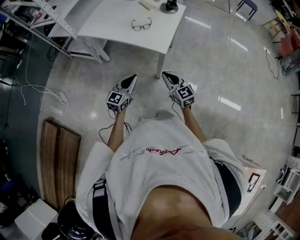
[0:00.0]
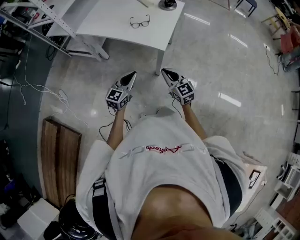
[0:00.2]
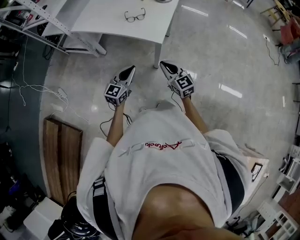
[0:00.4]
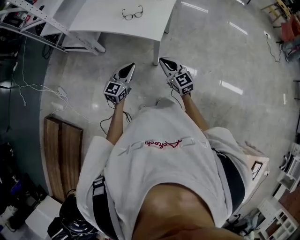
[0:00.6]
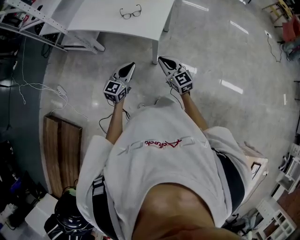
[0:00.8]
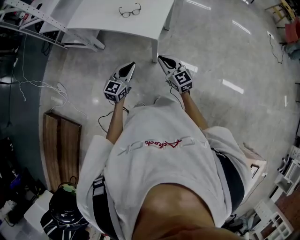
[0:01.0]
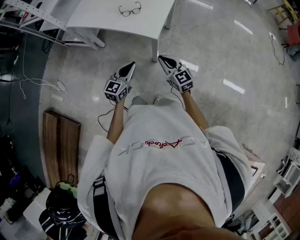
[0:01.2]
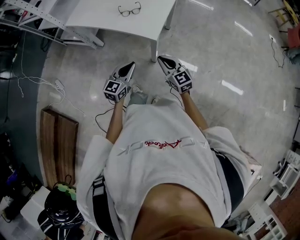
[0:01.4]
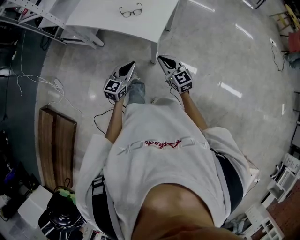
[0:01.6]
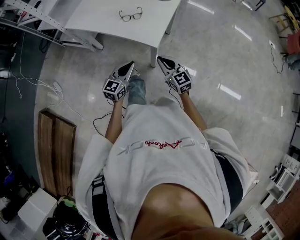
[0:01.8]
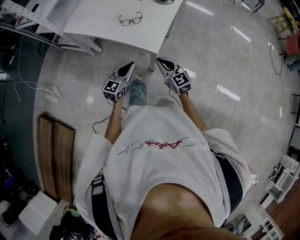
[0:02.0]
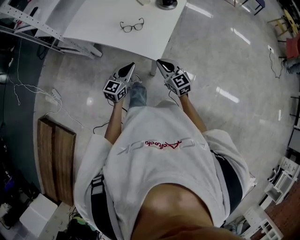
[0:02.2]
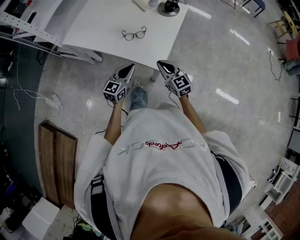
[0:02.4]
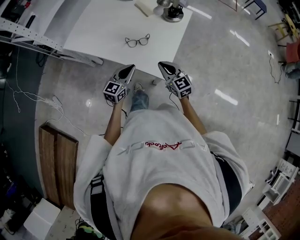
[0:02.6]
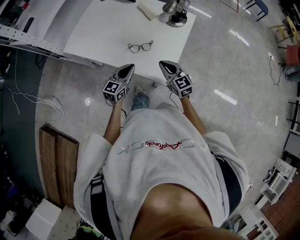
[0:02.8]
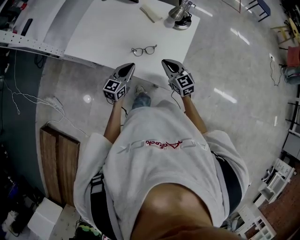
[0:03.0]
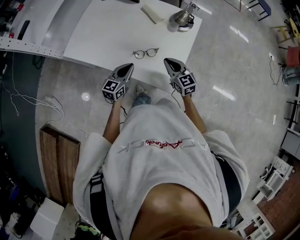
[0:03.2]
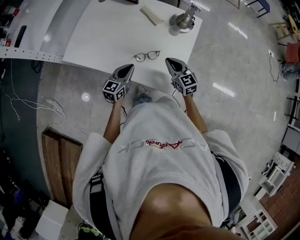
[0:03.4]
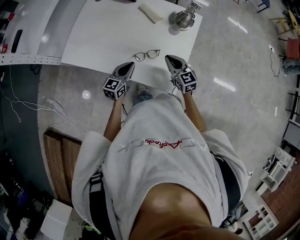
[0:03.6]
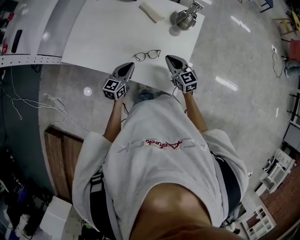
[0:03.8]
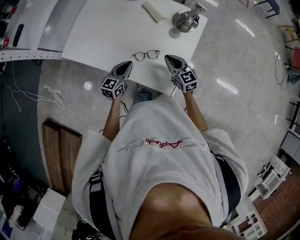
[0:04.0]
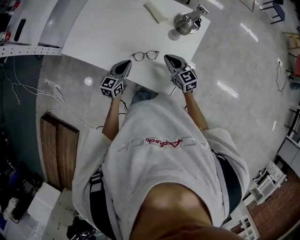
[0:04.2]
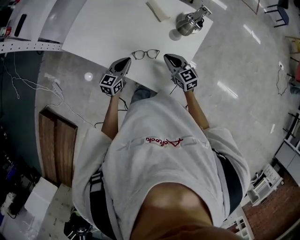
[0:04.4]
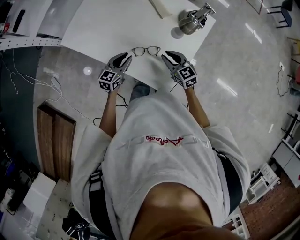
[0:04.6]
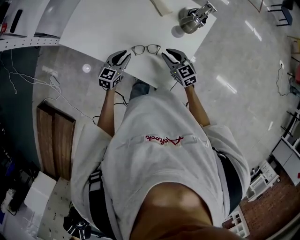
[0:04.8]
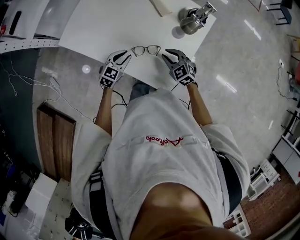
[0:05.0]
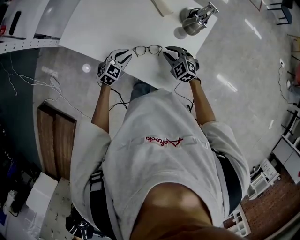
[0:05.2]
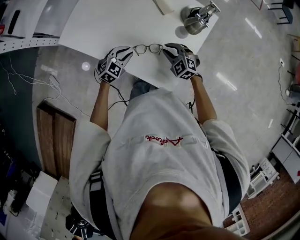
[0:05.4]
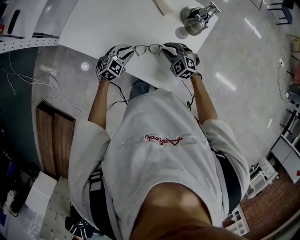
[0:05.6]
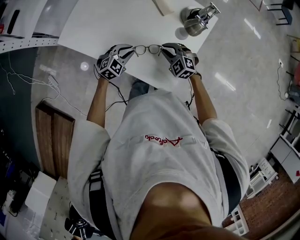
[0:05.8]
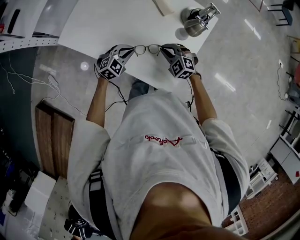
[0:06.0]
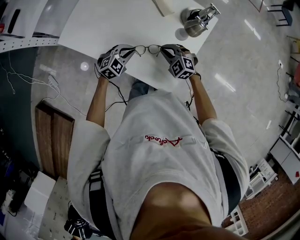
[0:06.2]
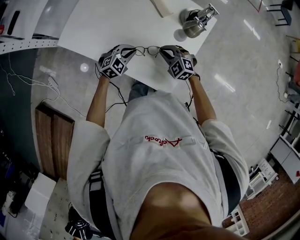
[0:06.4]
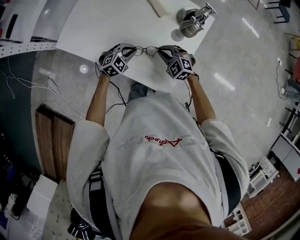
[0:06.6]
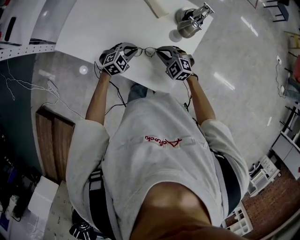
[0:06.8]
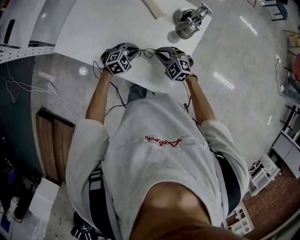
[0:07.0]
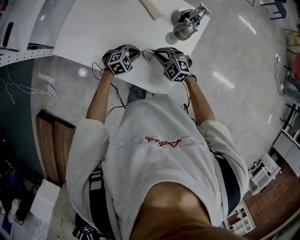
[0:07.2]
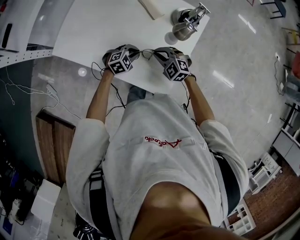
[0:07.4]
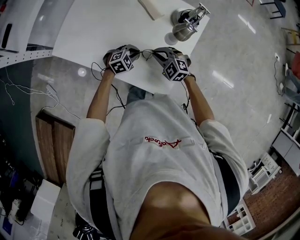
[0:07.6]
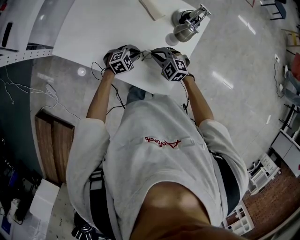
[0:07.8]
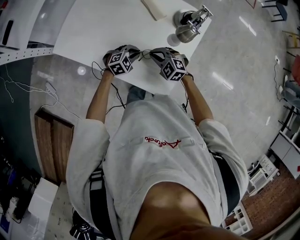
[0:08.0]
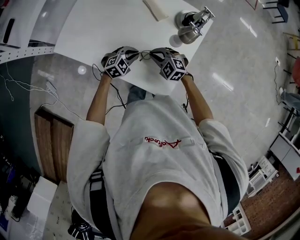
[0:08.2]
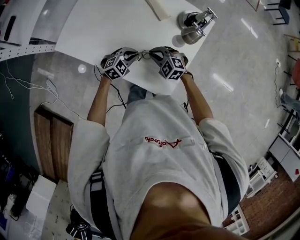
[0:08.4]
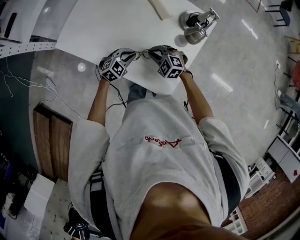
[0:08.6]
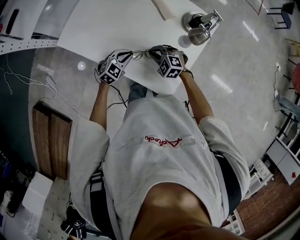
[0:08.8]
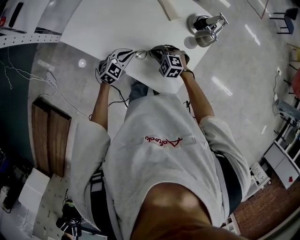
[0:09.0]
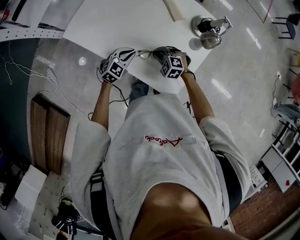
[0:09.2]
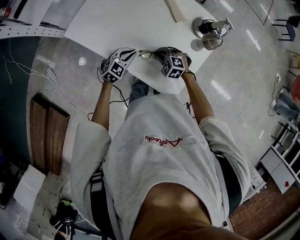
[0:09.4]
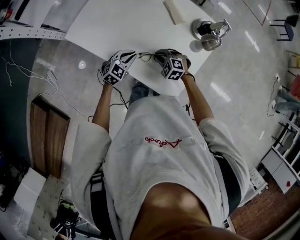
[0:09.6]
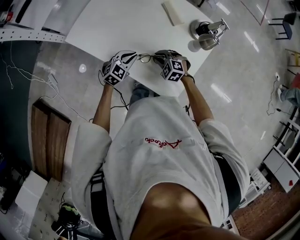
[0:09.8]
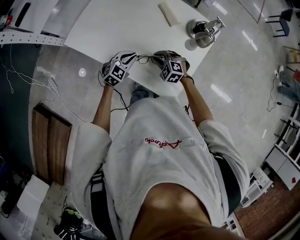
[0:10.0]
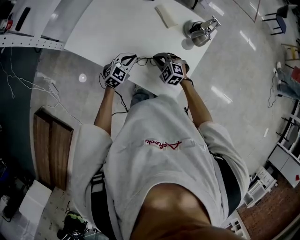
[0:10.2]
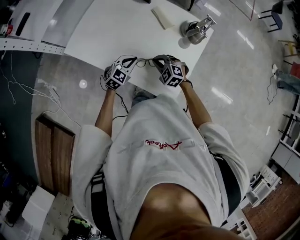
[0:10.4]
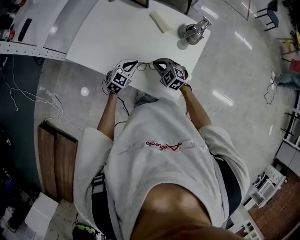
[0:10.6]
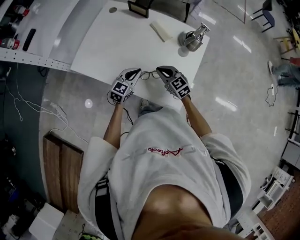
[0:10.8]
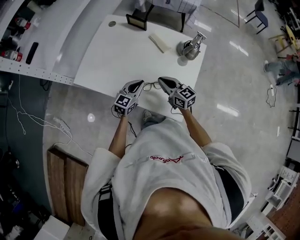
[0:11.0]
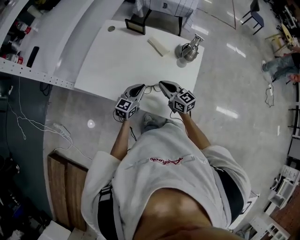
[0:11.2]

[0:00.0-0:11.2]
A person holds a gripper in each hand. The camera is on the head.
0:00.0 to 0:01.6: The right gripper heads forward, covering about 5 cm. Meanwhile the left gripper moves to the right, roughly 5 cm.
0:01.6 to 0:03.2: Both grippers travel together forward, roughly 30 cm.
0:03.2 to 0:04.8: The left gripper moves approximately 5 cm. Meanwhile the right gripper is displaced downward by roughly 5 cm, and opens its fingers.
0:04.8 to 0:06.4: The left gripper changes its angle by roughly 40 degrees; the right gripper swivels about 40 degrees.
0:06.4 to 0:08.0: The left gripper moves approximately 5 cm.
0:08.0 to 0:09.6: The right gripper shifts roughly 5 cm to the left and downward. The left gripper shifts some 10 cm to the left, and swivels some 30 degrees.
0:09.6 to 0:11.2: The left gripper is displaced upward by some 10 cm, and swivels approximately 30 degrees. Meanwhile the right gripper goes approximately 15 cm upward, and angles its fingers upward, by about 40 degrees.

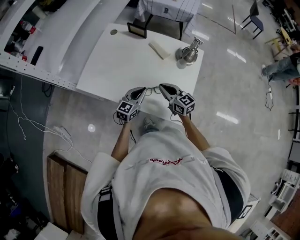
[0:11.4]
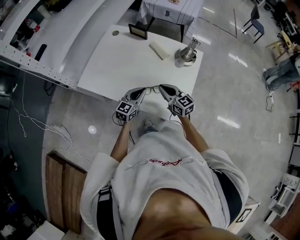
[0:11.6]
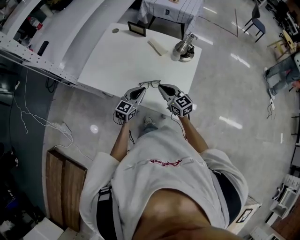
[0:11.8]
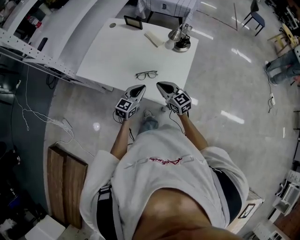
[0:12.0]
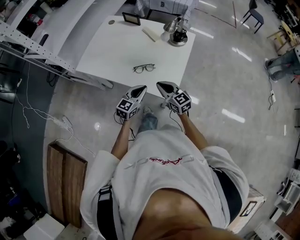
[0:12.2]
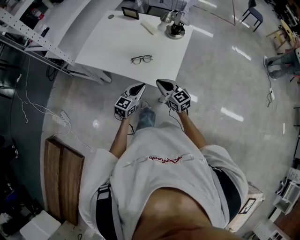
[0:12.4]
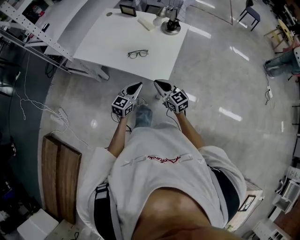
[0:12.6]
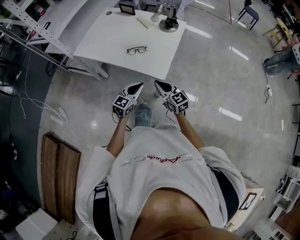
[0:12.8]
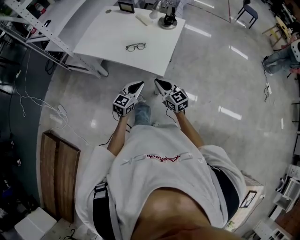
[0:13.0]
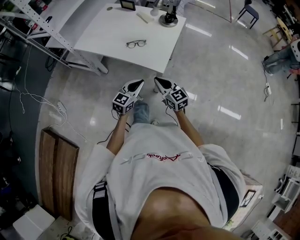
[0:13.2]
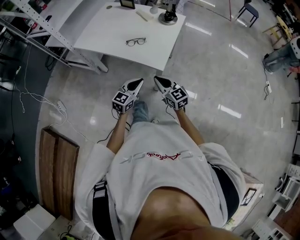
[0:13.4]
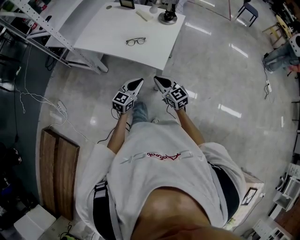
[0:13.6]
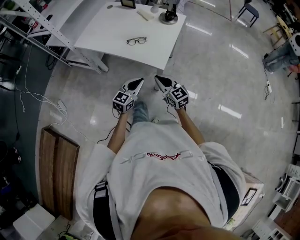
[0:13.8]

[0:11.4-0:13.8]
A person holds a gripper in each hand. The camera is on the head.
0:11.4 to 0:12.6: Both grippers move backward, about 25 cm.
0:12.6 to 0:13.8: The grippers both shift backward by about 10 cm.

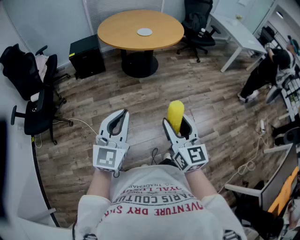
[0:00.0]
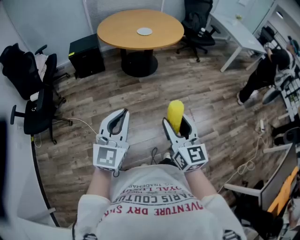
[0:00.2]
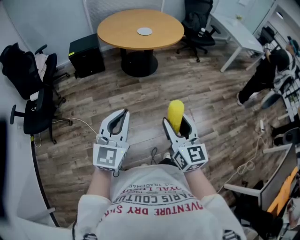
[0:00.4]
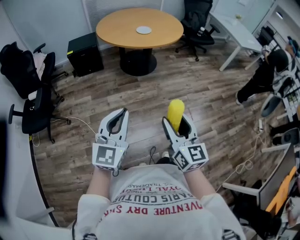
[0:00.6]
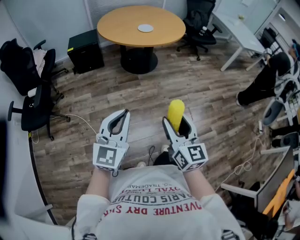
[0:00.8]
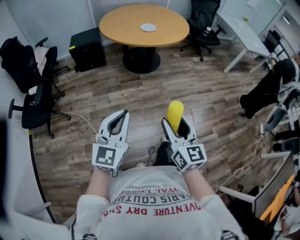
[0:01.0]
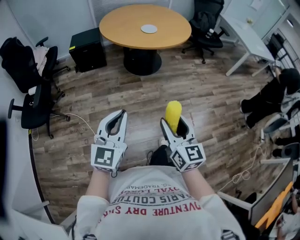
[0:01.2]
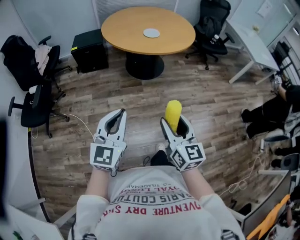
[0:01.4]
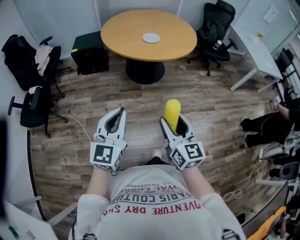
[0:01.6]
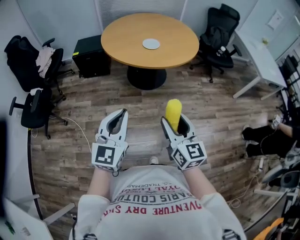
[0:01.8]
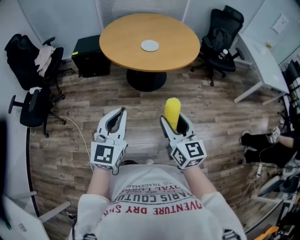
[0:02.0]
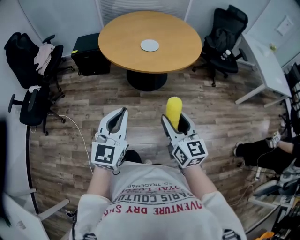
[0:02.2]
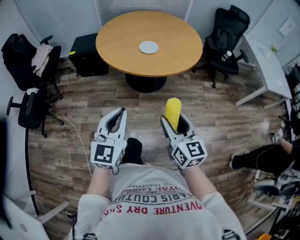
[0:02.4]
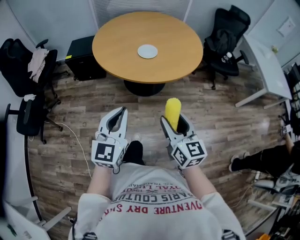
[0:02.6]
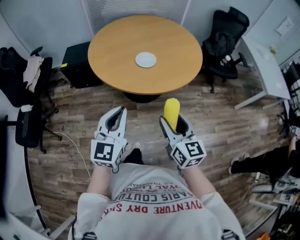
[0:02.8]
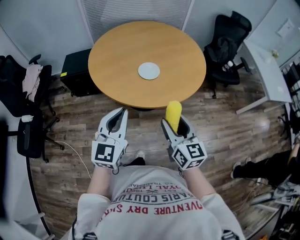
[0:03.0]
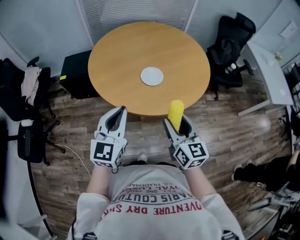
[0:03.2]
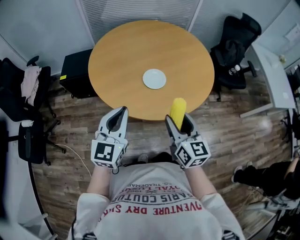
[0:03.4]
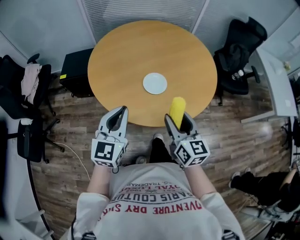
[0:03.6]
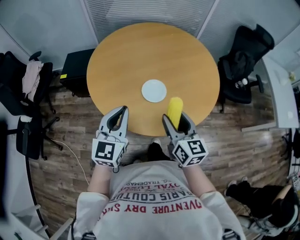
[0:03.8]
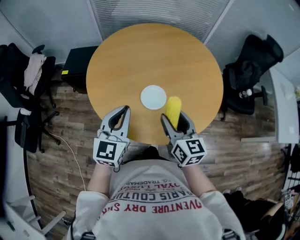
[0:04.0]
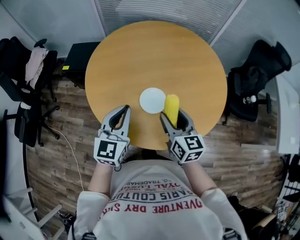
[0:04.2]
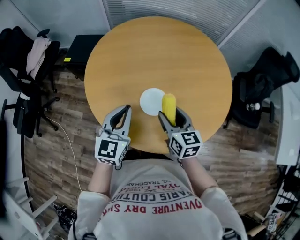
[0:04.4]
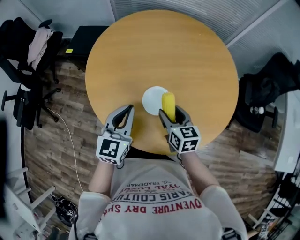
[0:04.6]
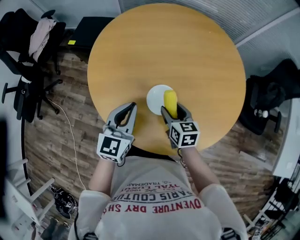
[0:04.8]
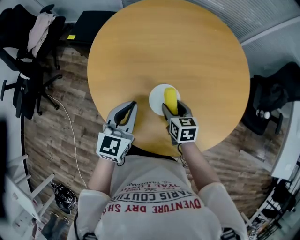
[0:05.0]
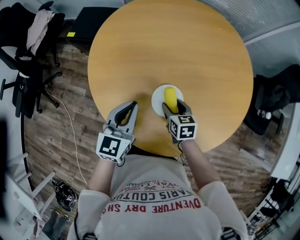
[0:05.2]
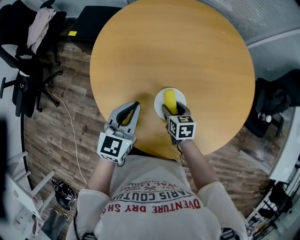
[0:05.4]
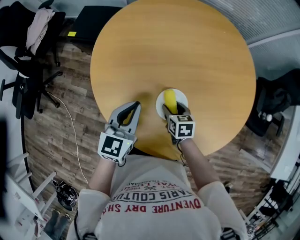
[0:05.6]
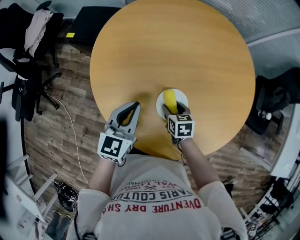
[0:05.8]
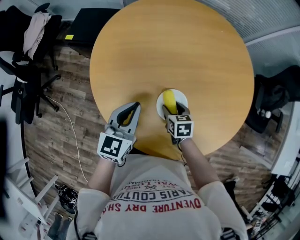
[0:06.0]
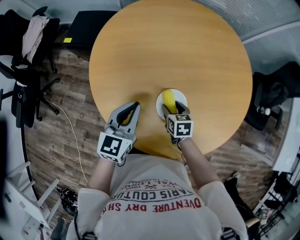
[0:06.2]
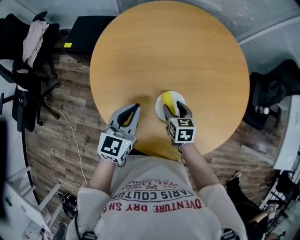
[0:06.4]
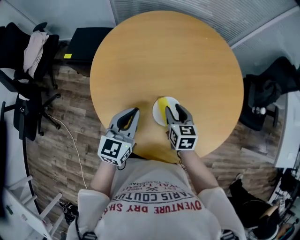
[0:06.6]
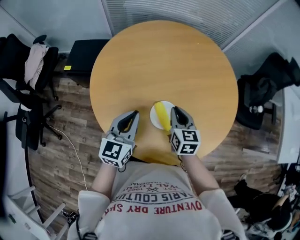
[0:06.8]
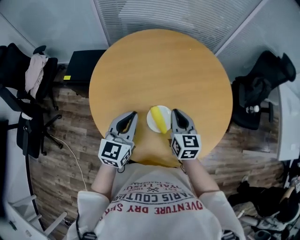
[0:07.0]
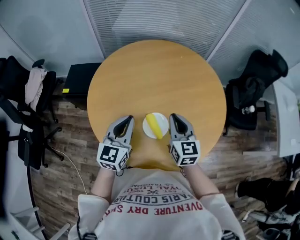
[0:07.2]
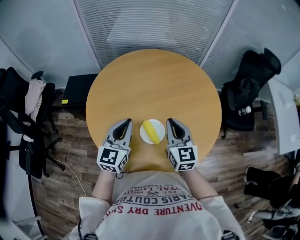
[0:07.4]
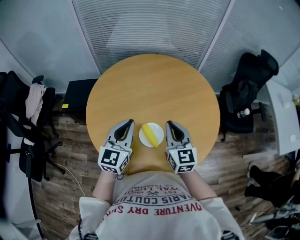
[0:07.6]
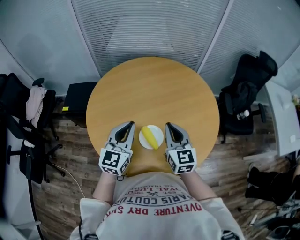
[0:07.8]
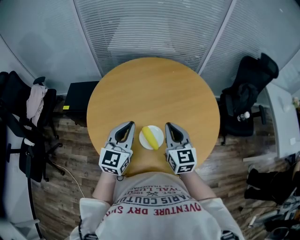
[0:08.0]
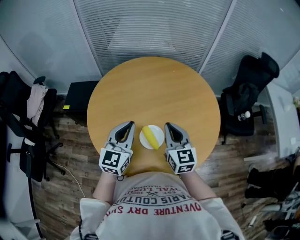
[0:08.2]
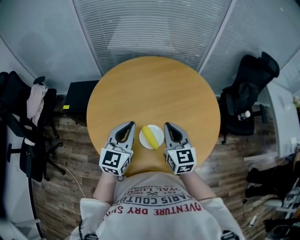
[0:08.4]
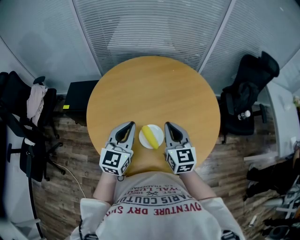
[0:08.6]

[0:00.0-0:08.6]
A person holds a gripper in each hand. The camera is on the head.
0:00.0 to 0:01.4: The two grippers go about 15 cm forward.
0:01.4 to 0:02.8: Both grippers travel together forward, approximately 35 cm.
0:02.8 to 0:04.4: The grippers both shift forward by roughly 40 cm. The right gripper swivels approximately 20 degrees.
0:04.4 to 0:05.8: The right gripper travels downward by roughly 20 cm, and tips its fingers downward by about 30 degrees; the left gripper is displaced downward and forward by some 10 cm.
0:05.8 to 0:07.2: The left gripper shifts about 10 cm upward. Meanwhile the right gripper heads upward, covering roughly 25 cm, points its fingers about 40 degrees further upward, and closes its fingers.
0:07.2 to 0:08.6: The left gripper moves approximately 5 cm.

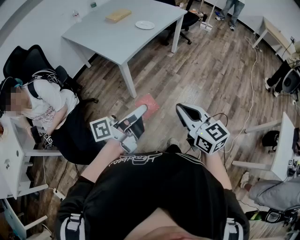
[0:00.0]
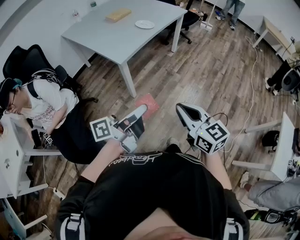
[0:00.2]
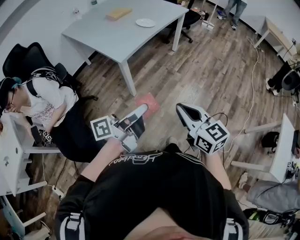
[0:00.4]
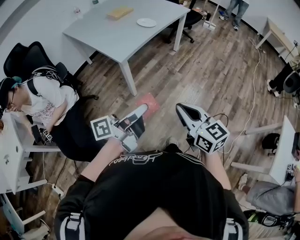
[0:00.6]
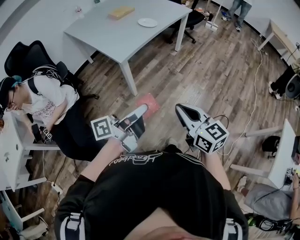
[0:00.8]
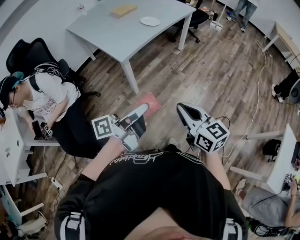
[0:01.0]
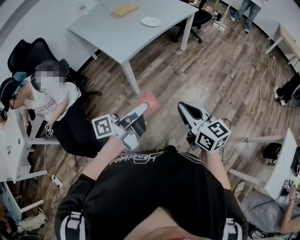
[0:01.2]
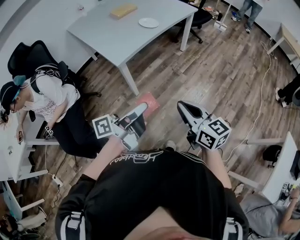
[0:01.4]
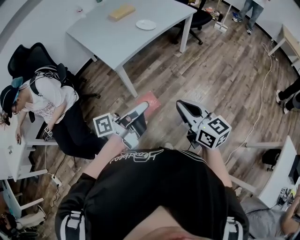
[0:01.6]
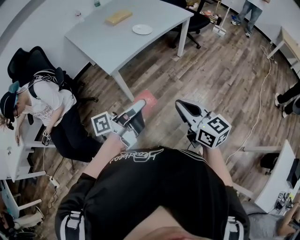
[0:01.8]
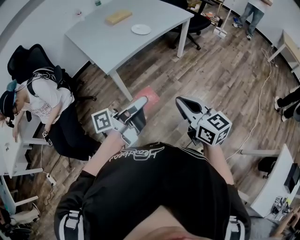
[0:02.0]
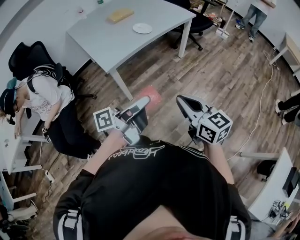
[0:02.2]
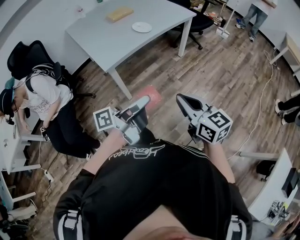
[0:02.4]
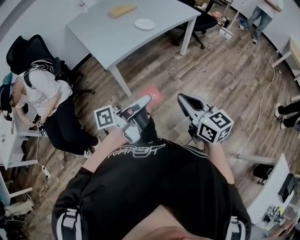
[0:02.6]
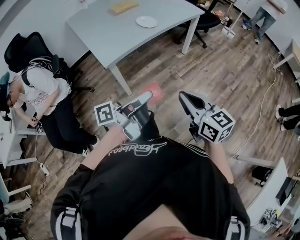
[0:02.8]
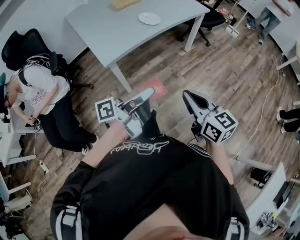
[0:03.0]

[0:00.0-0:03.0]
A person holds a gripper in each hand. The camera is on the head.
0:00.0 to 0:01.6: Both grippers move forward and to the right, roughly 15 cm.
0:01.6 to 0:03.0: The grippers both shift forward and to the right by roughly 15 cm.
